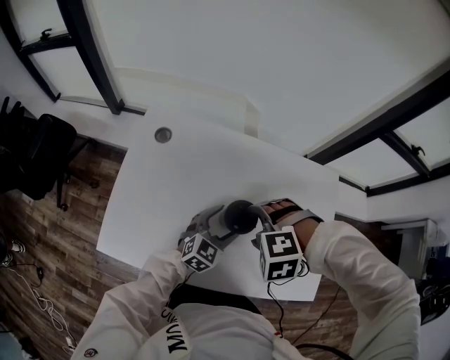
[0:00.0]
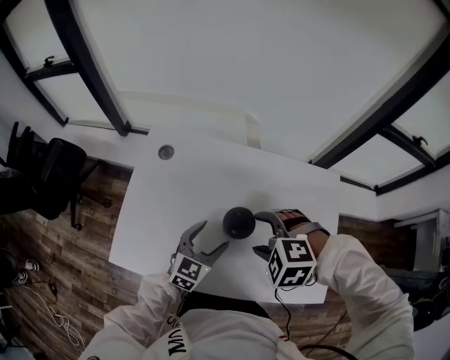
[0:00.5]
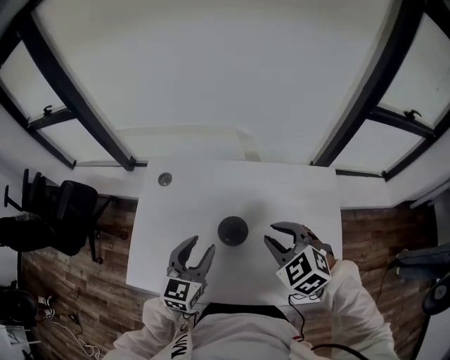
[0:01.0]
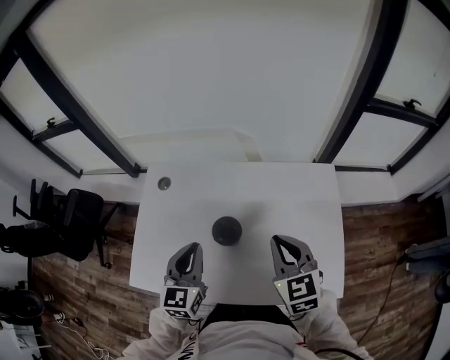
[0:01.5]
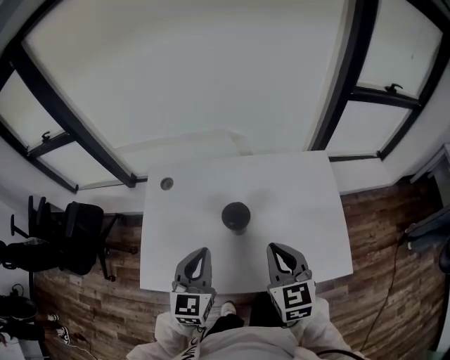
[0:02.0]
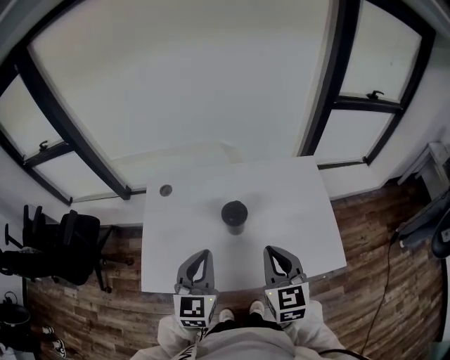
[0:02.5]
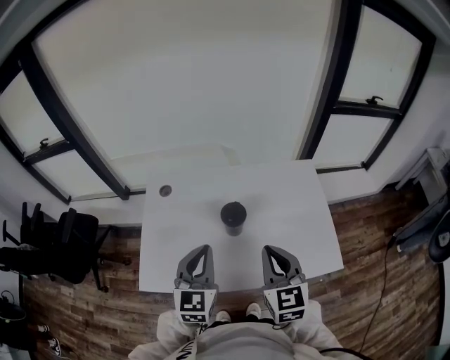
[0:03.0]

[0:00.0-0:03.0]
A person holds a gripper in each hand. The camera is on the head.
0:00.0 to 0:01.5: The right gripper changes place by approximately 15 cm, angles its fingers upward, by about 50 degrees, and closes up. Meanwhile the left gripper heads upward, covering roughly 15 cm, turns by some 30 degrees, and closes its fingers.
0:01.5 to 0:03.0: The right gripper moves backward and to the left, about 15 cm; the left gripper travels backward and upward by approximately 10 cm.

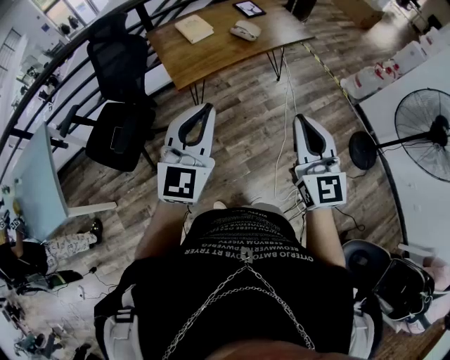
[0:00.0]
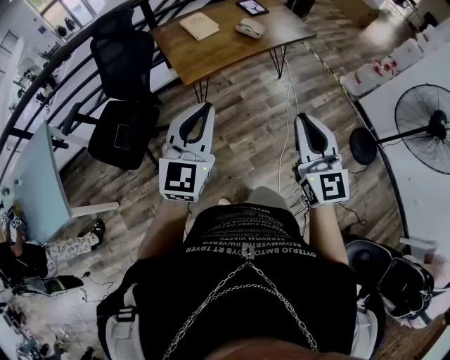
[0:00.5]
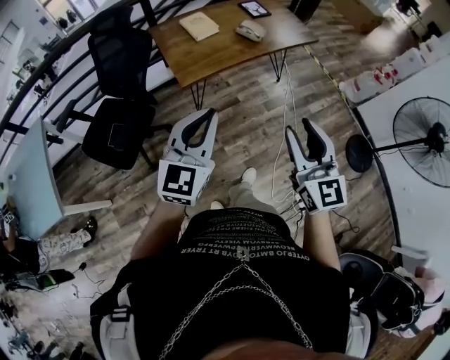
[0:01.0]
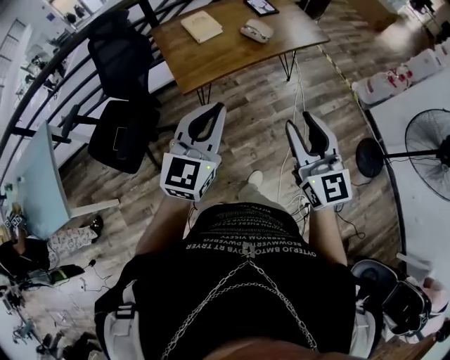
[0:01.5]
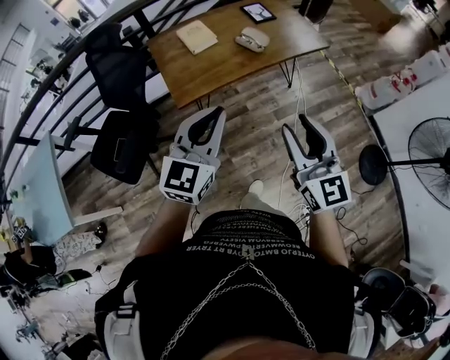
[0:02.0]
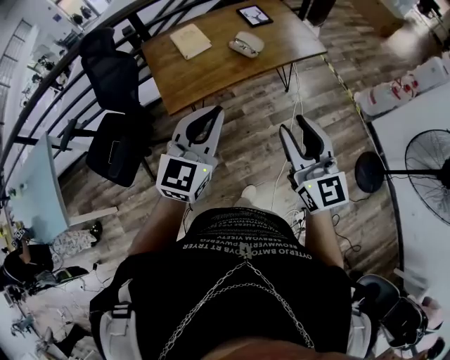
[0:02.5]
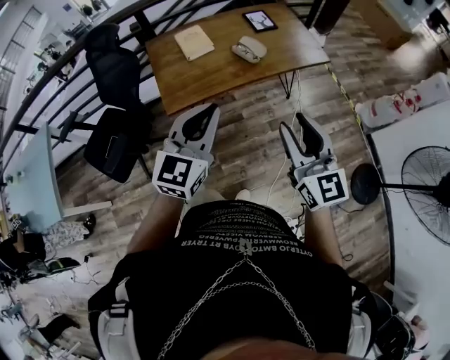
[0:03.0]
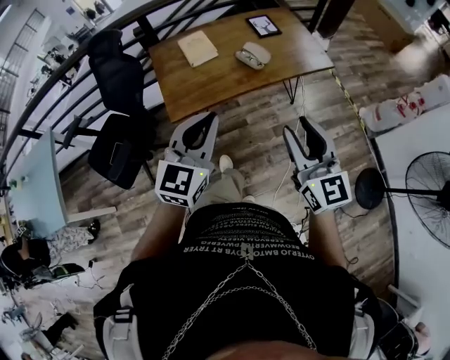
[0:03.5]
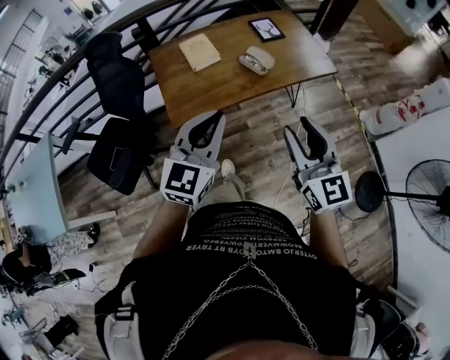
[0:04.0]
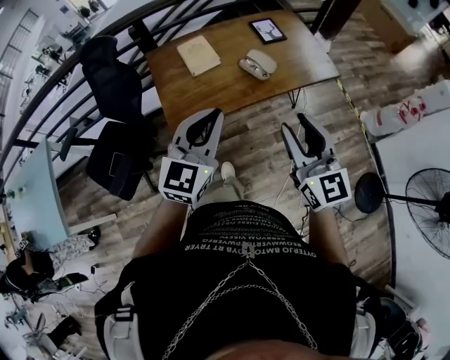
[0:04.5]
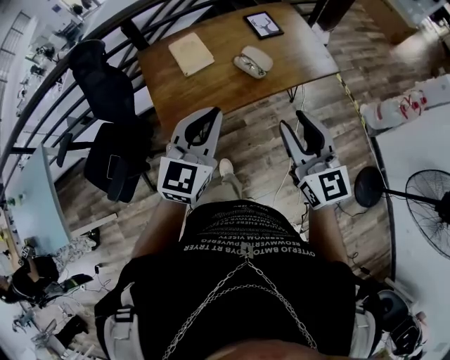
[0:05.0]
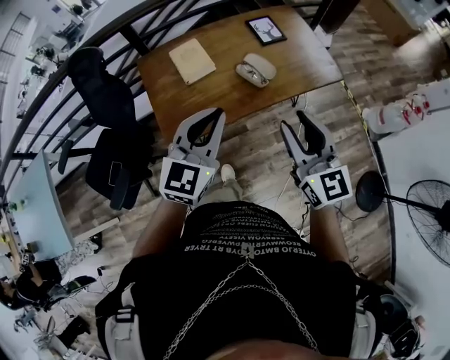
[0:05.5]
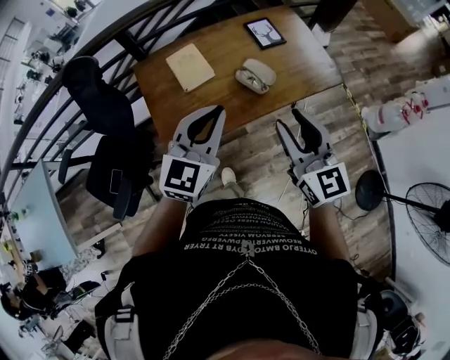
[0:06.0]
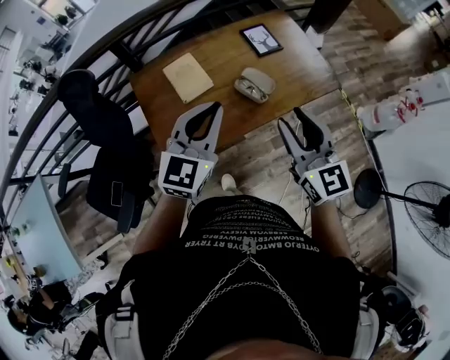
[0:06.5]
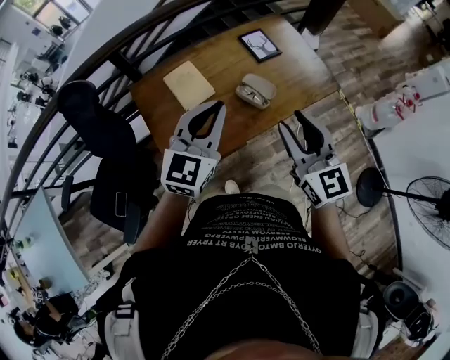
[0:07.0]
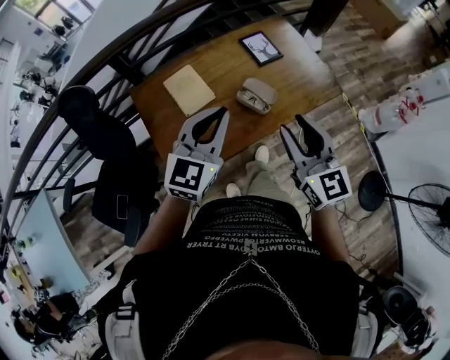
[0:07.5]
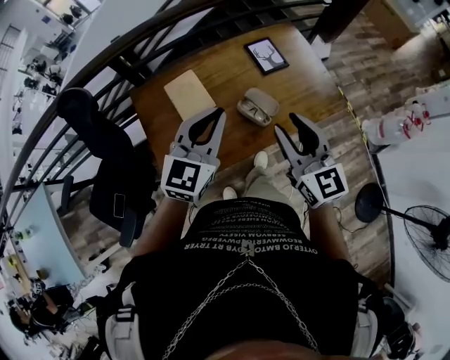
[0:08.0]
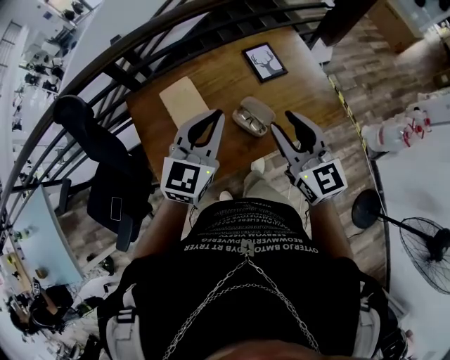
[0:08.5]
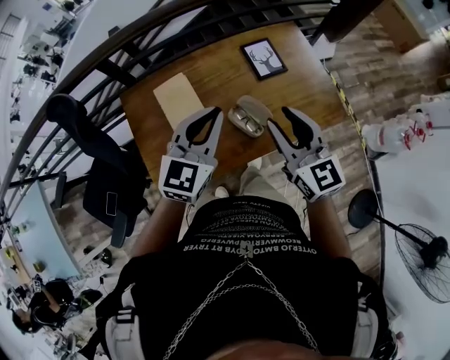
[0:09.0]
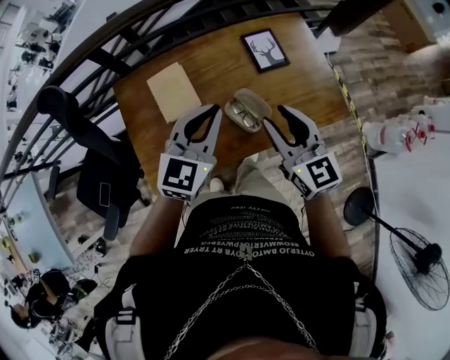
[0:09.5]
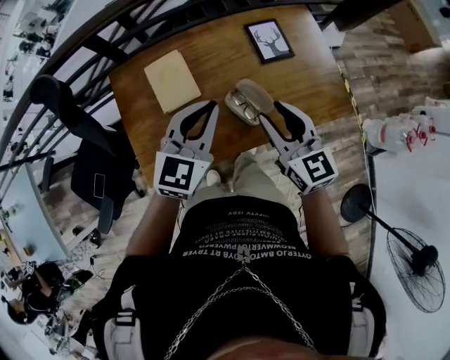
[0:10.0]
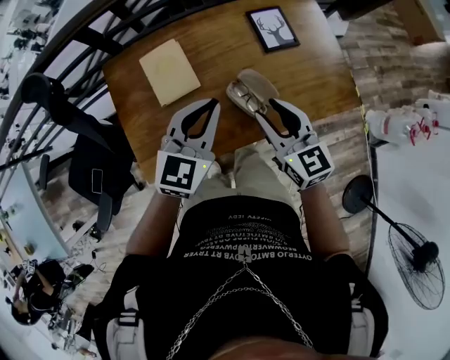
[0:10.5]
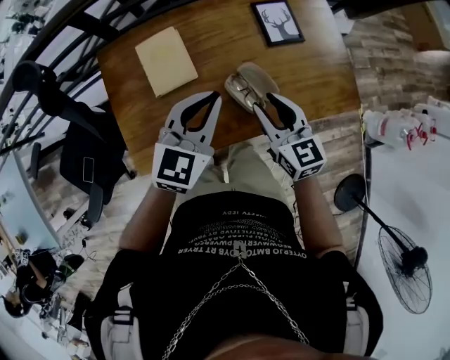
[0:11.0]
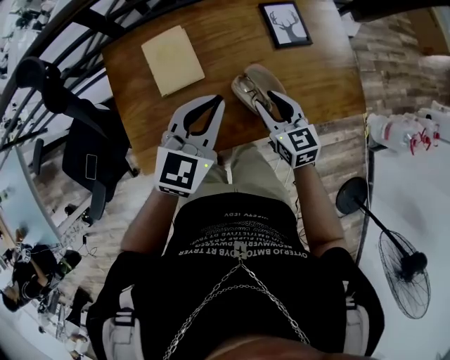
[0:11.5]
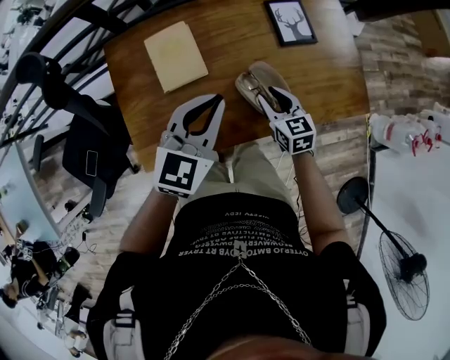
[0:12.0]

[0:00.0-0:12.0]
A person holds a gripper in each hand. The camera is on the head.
0:00.0 to 0:02.0: The grippers both shift forward by about 15 cm. The right gripper opens.
0:02.0 to 0:04.0: The two grippers go some 10 cm forward.
0:04.0 to 0:06.0: Both grippers travel together forward, approximately 20 cm.
0:06.0 to 0:08.0: Both grippers travel together forward, roughly 15 cm.
0:08.0 to 0:10.0: Both grippers travel together downward and forward, roughly 15 cm.
0:10.0 to 0:12.0: The left gripper shifts approximately 5 cm downward. The right gripper is displaced downward by about 20 cm, and rotates about 20 degrees.

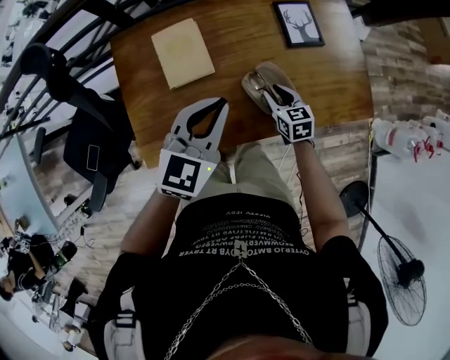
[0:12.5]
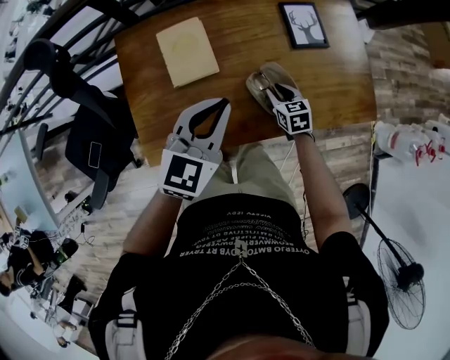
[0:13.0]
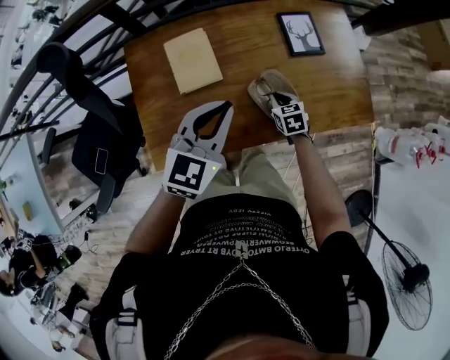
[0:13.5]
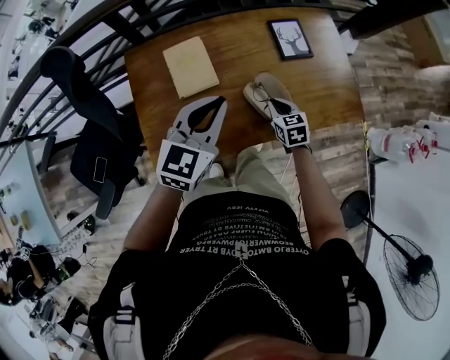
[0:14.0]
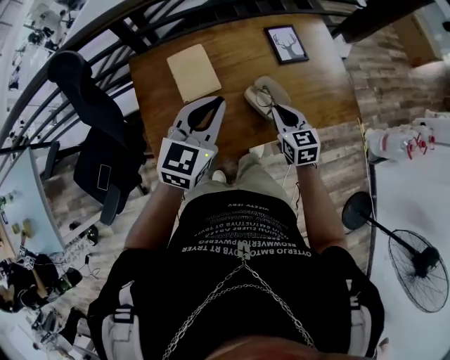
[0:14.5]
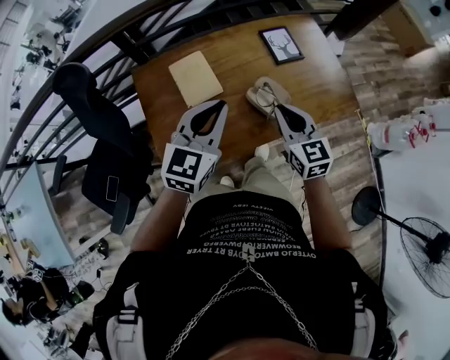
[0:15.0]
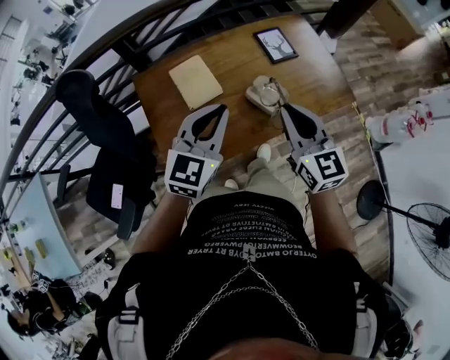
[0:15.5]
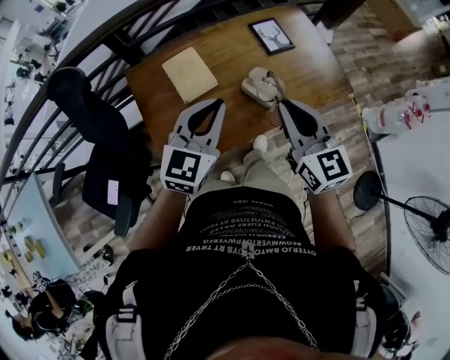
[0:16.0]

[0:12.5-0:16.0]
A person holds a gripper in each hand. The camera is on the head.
0:12.5 to 0:14.5: The left gripper is displaced upward by about 5 cm; the right gripper heads upward and backward, covering about 15 cm, and closes up.
0:14.5 to 0:16.0: The left gripper moves backward, roughly 5 cm. Meanwhile the right gripper moves upward and backward, some 25 cm, and swivels some 20 degrees.

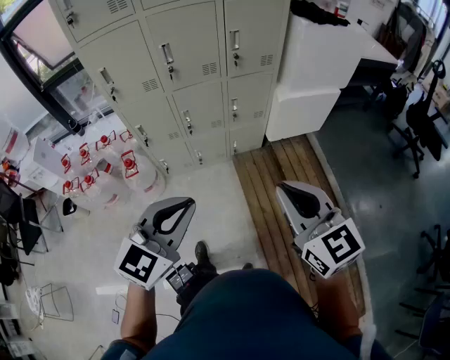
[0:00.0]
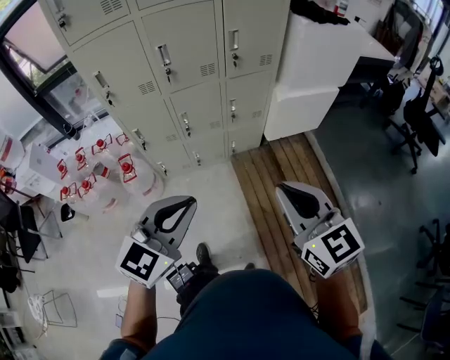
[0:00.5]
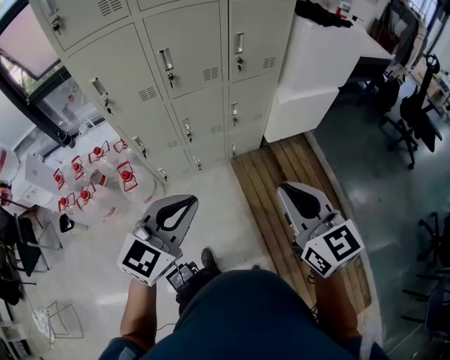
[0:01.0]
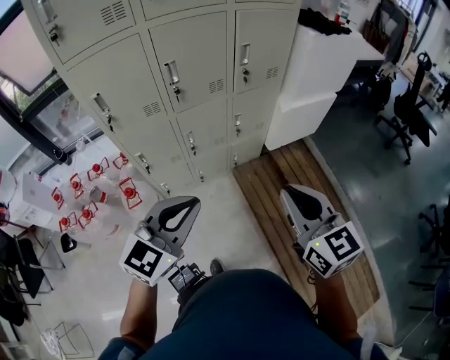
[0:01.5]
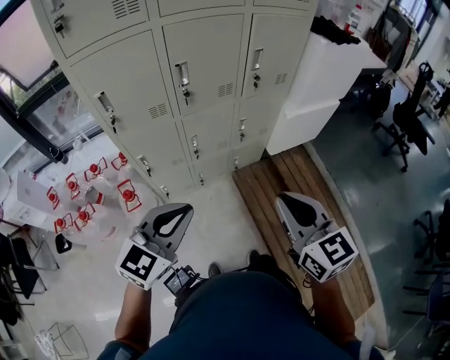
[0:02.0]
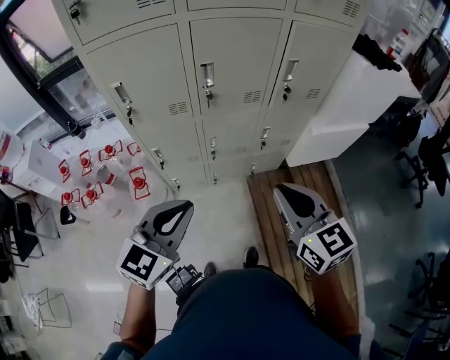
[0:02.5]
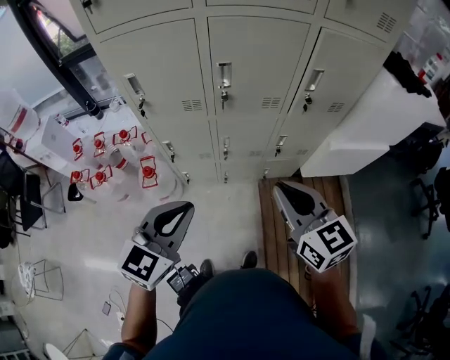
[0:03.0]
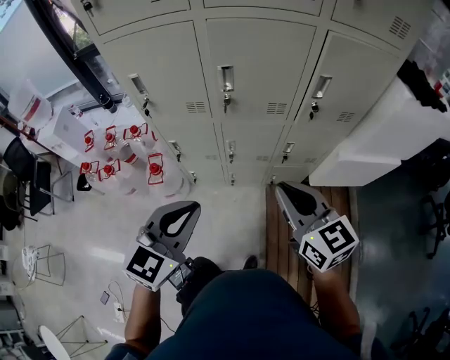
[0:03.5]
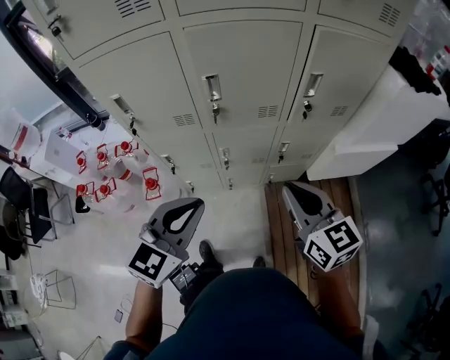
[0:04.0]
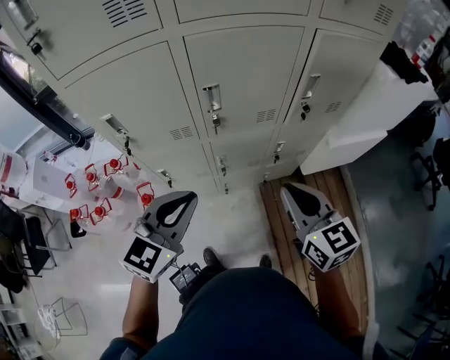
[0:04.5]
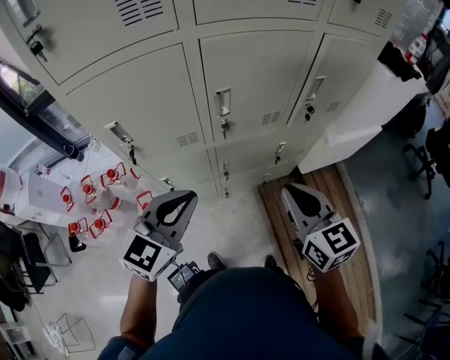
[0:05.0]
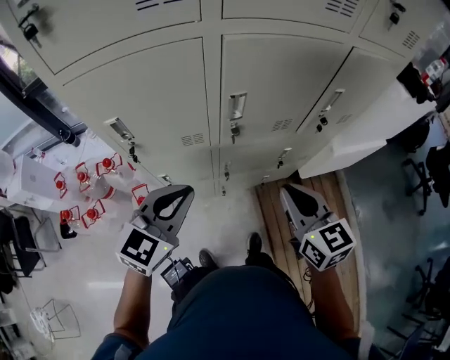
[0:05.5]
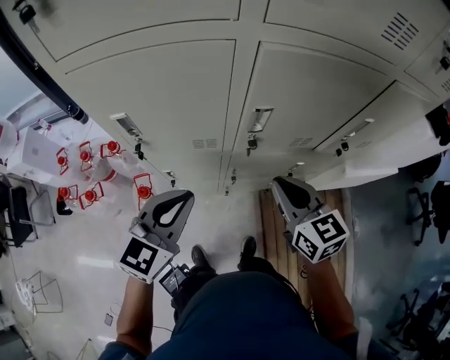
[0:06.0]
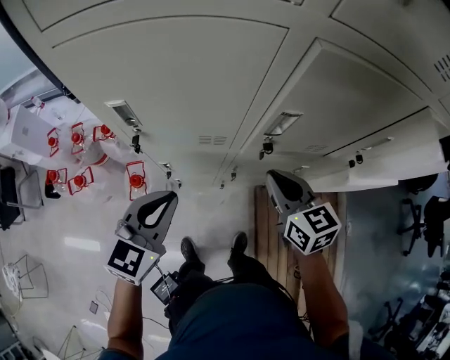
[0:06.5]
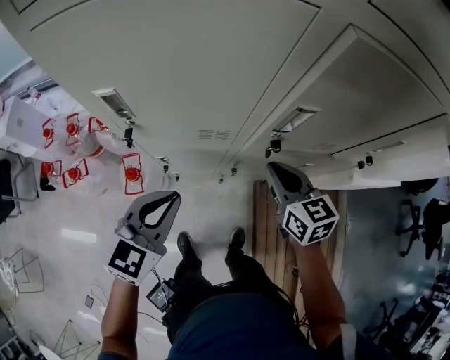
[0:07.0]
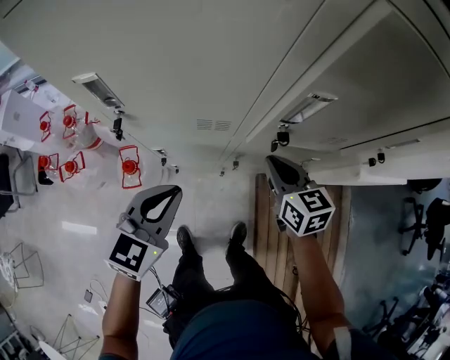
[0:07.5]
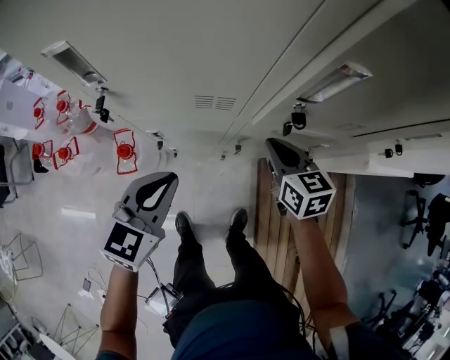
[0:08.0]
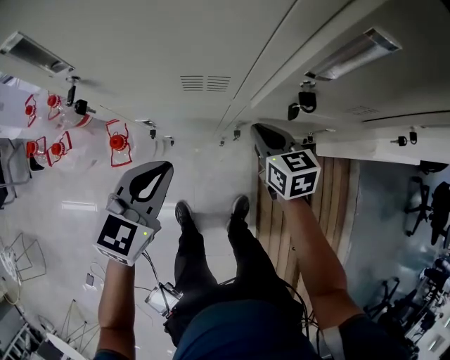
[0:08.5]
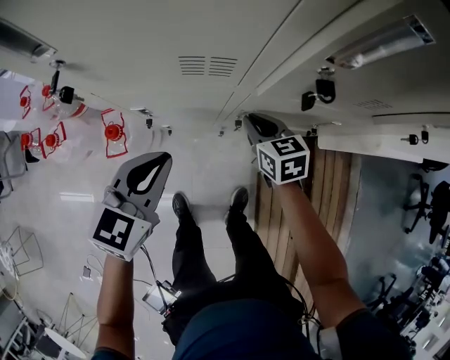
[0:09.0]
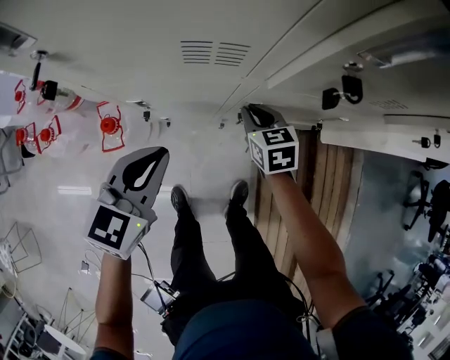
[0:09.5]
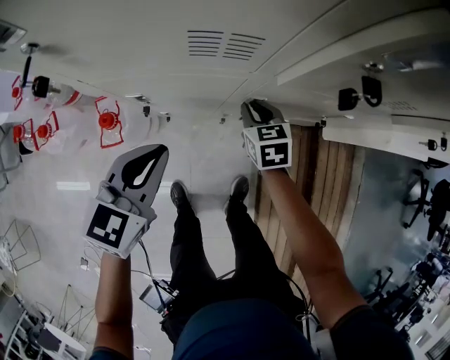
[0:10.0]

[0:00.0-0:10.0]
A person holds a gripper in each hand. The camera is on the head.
0:00.0 to 0:02.0: The grippers both shift to the left and forward by roughly 25 cm.
0:02.0 to 0:04.0: The left gripper ends up approximately 20 cm from where it was; the right gripper shifts by some 25 cm.
0:04.0 to 0:06.0: Both grippers move to the left and forward, approximately 20 cm.
0:06.0 to 0:08.0: The left gripper heads downward, covering some 20 cm; the right gripper travels downward and forward by roughly 25 cm.
0:08.0 to 0:10.0: The left gripper heads downward, covering roughly 10 cm, while the right gripper travels downward by some 20 cm.
